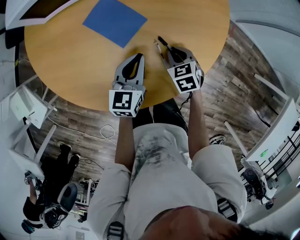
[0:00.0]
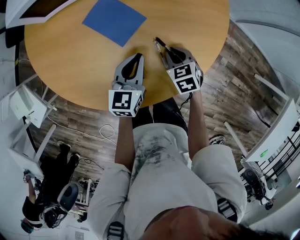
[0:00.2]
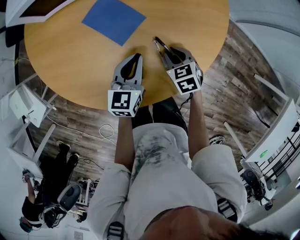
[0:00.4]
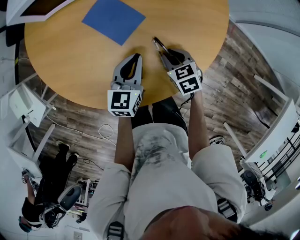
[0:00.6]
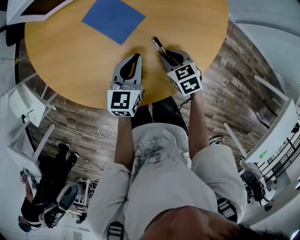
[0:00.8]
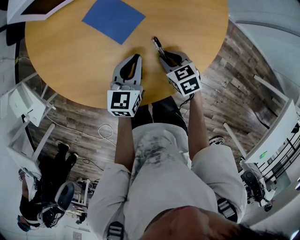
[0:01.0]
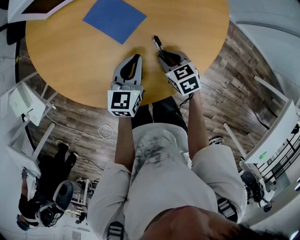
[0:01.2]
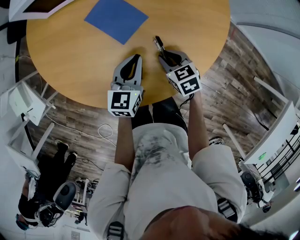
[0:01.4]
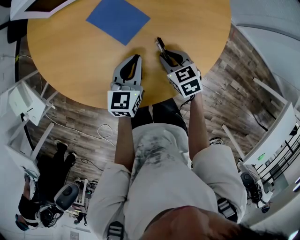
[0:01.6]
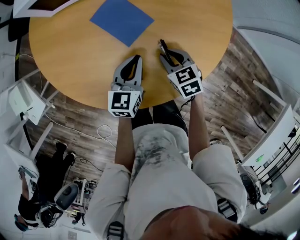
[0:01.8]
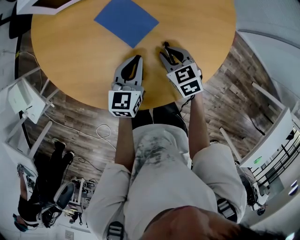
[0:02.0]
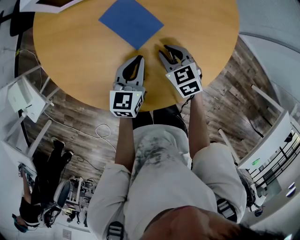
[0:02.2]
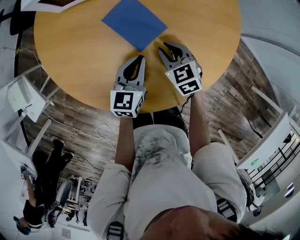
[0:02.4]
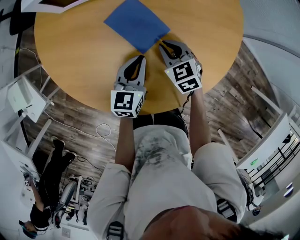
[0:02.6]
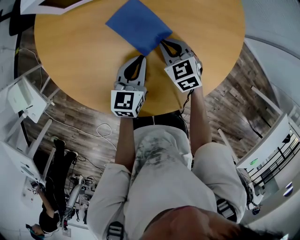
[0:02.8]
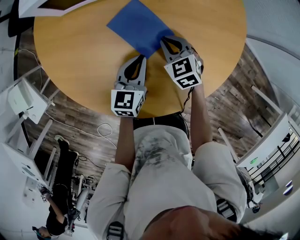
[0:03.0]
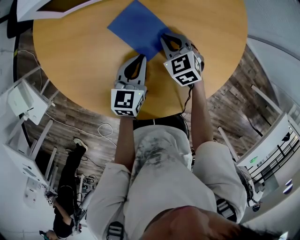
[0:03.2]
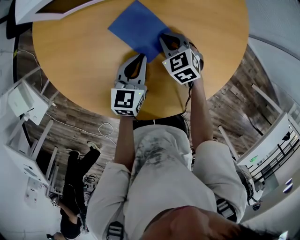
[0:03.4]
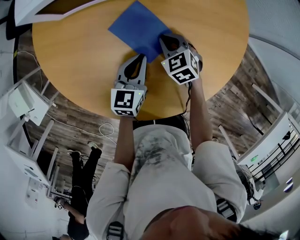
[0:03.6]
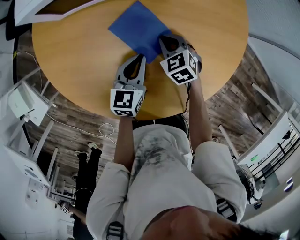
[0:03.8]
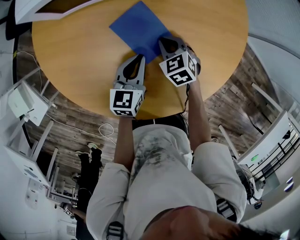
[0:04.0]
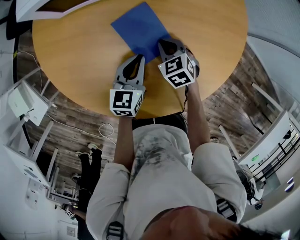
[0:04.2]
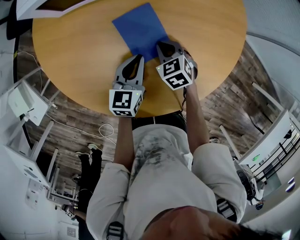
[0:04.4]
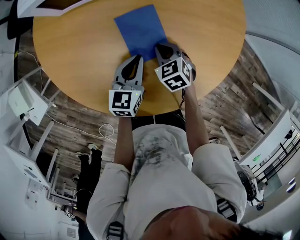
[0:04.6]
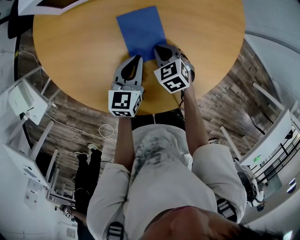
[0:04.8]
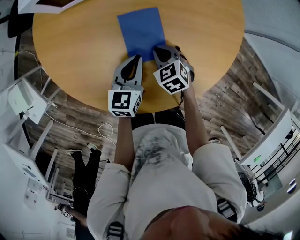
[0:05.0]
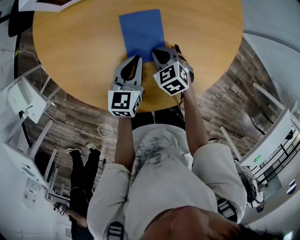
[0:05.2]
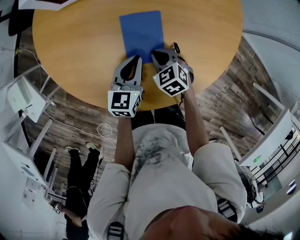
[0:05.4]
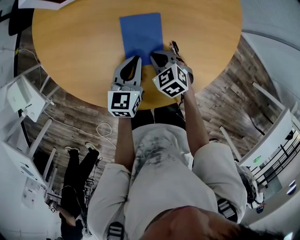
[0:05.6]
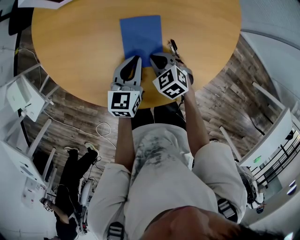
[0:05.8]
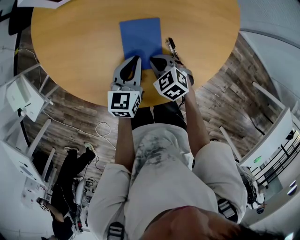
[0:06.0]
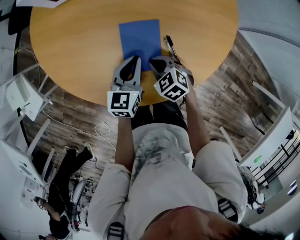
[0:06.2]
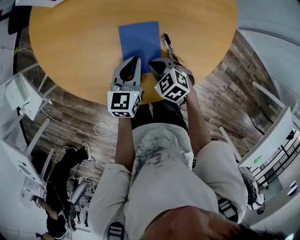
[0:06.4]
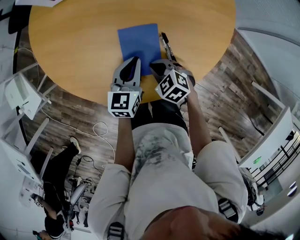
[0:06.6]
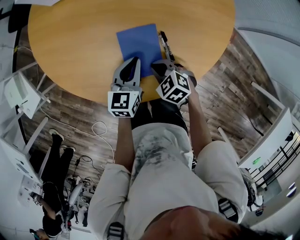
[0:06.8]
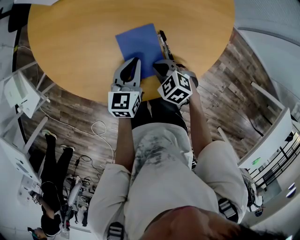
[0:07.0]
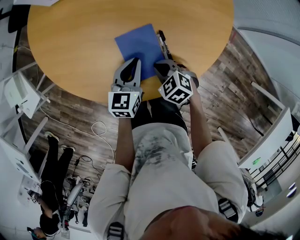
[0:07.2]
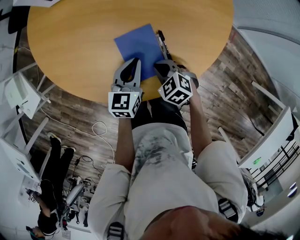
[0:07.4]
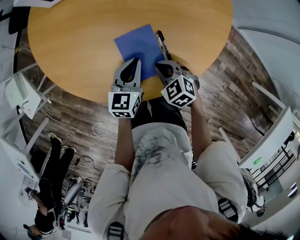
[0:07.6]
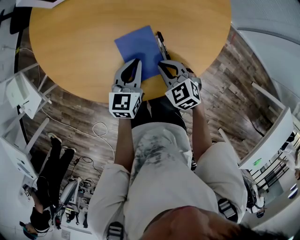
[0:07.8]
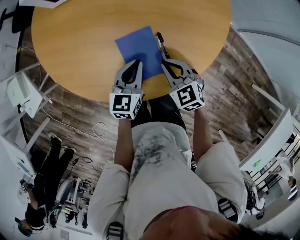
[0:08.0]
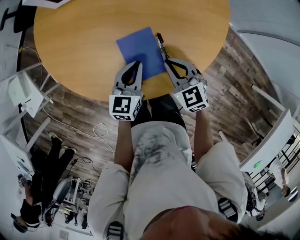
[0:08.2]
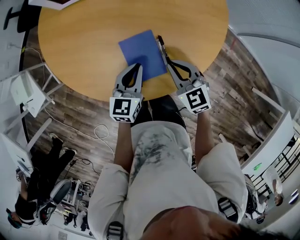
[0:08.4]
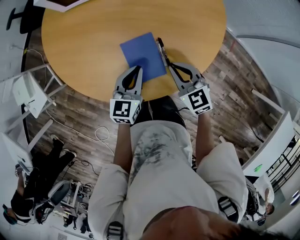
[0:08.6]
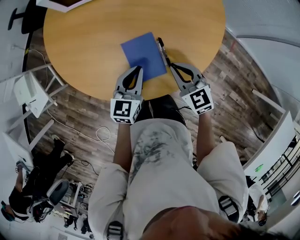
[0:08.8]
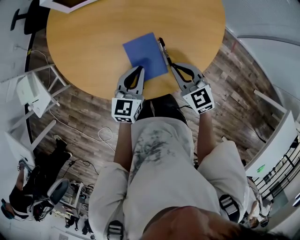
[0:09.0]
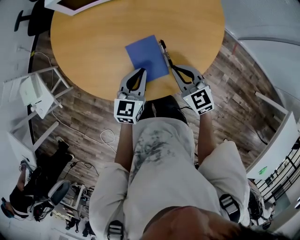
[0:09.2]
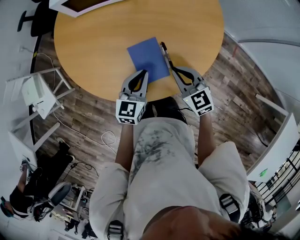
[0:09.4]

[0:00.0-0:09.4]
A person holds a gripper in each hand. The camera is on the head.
0:00.0 to 0:01.6: The grippers make only small movements.
0:01.6 to 0:03.2: The left gripper goes approximately 10 cm forward and to the left. Meanwhile the right gripper shifts approximately 15 cm forward and to the left.
0:03.2 to 0:04.8: The right gripper shifts about 5 cm backward.
0:04.8 to 0:06.2: The left gripper travels backward by some 5 cm. Meanwhile the right gripper heads backward, covering about 10 cm.
0:06.2 to 0:07.8: The left gripper ends up roughly 5 cm from where it was. Meanwhile the right gripper heads to the right, covering about 5 cm.
0:07.8 to 0:09.4: Both grippers move upward, about 10 cm. The right gripper swivels approximately 20 degrees.

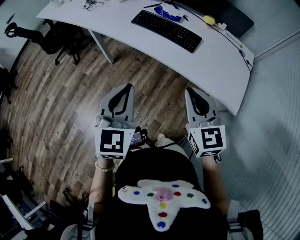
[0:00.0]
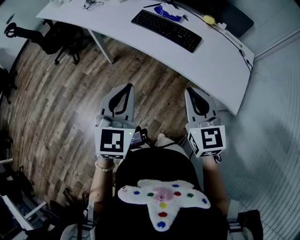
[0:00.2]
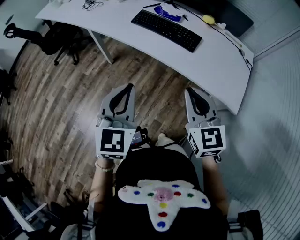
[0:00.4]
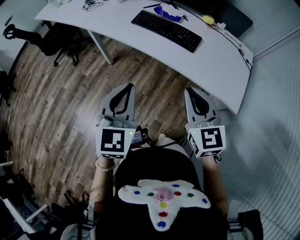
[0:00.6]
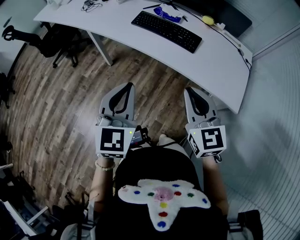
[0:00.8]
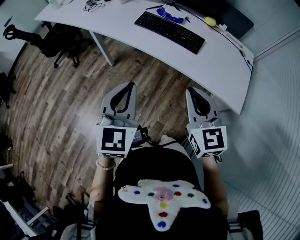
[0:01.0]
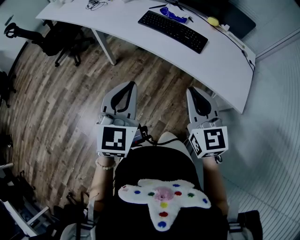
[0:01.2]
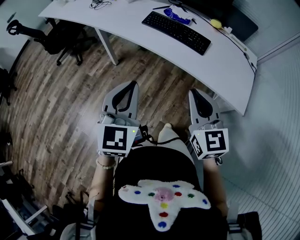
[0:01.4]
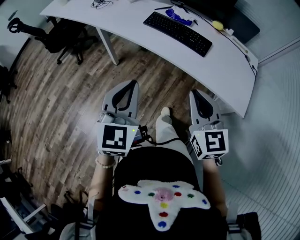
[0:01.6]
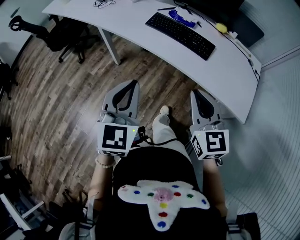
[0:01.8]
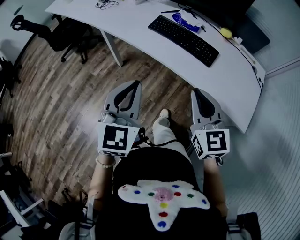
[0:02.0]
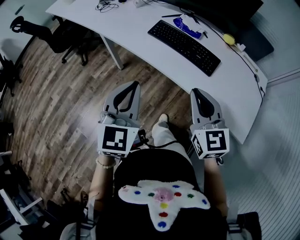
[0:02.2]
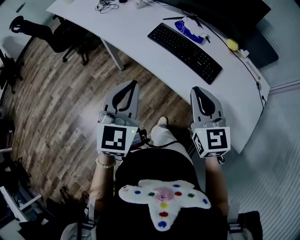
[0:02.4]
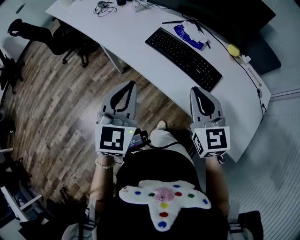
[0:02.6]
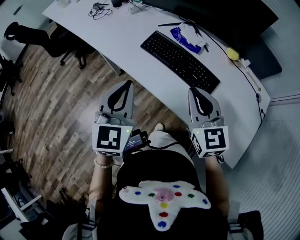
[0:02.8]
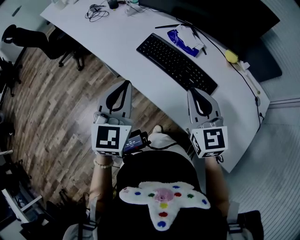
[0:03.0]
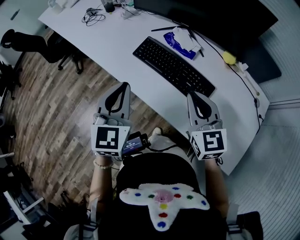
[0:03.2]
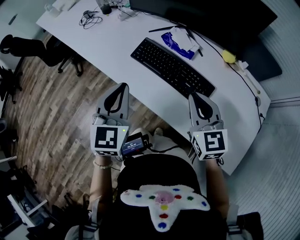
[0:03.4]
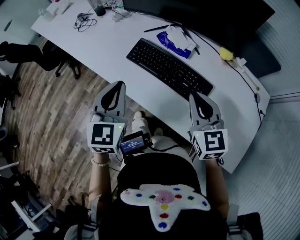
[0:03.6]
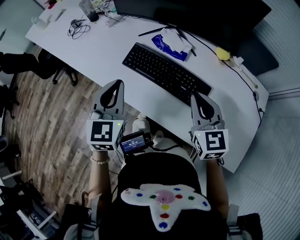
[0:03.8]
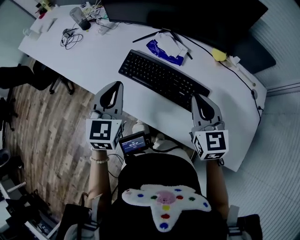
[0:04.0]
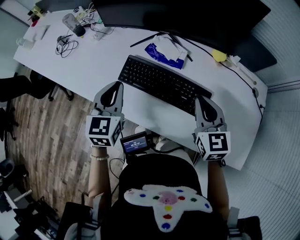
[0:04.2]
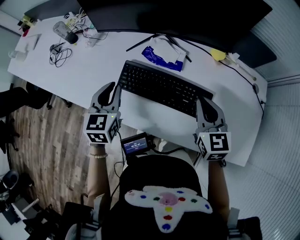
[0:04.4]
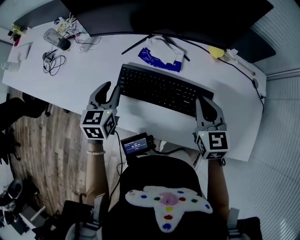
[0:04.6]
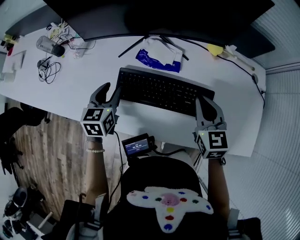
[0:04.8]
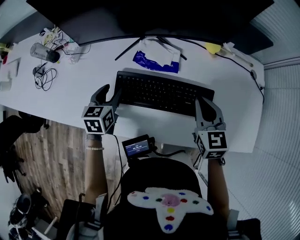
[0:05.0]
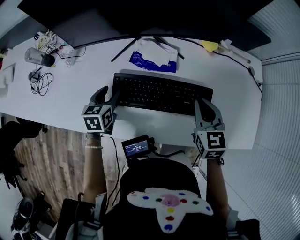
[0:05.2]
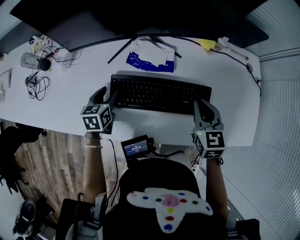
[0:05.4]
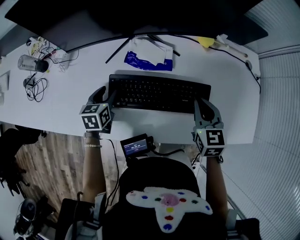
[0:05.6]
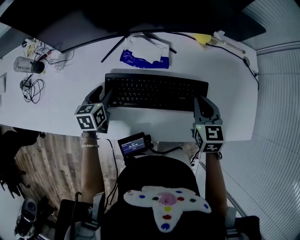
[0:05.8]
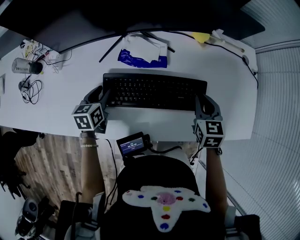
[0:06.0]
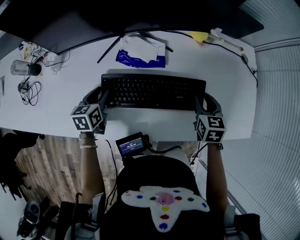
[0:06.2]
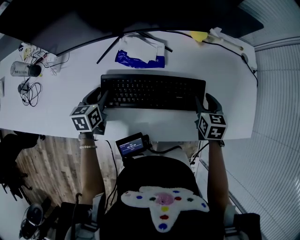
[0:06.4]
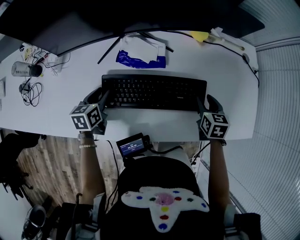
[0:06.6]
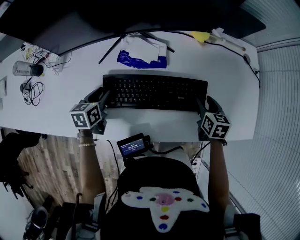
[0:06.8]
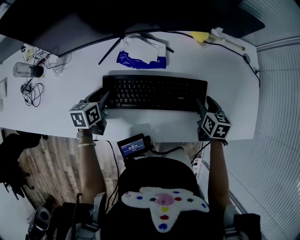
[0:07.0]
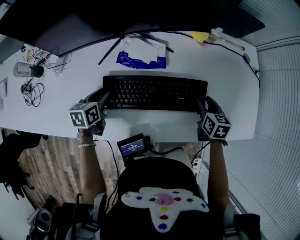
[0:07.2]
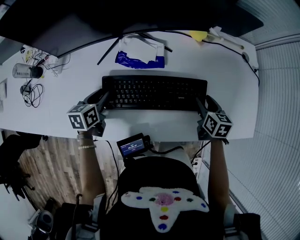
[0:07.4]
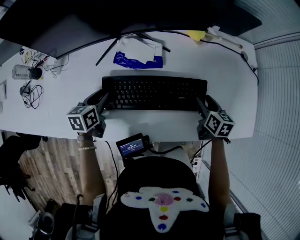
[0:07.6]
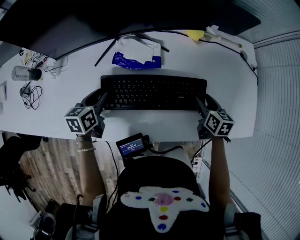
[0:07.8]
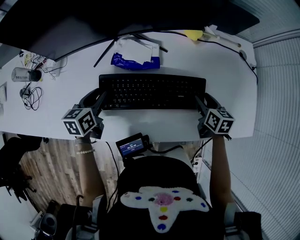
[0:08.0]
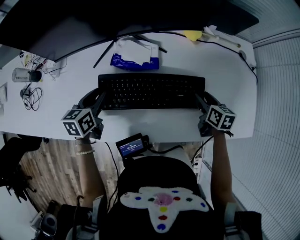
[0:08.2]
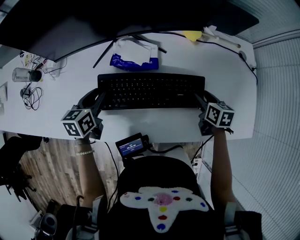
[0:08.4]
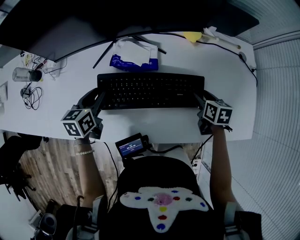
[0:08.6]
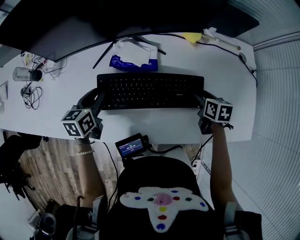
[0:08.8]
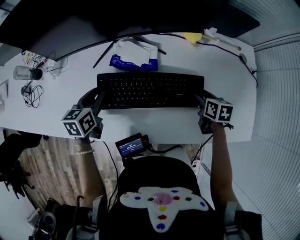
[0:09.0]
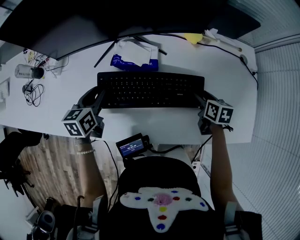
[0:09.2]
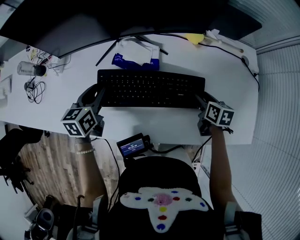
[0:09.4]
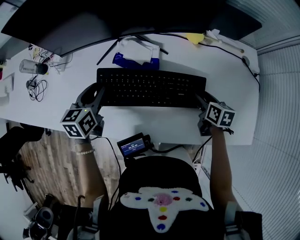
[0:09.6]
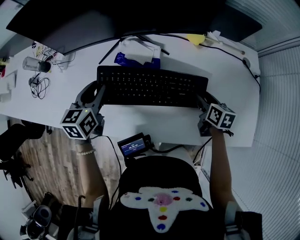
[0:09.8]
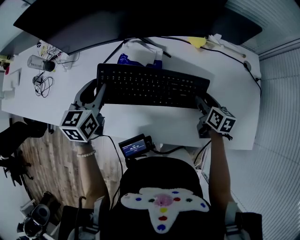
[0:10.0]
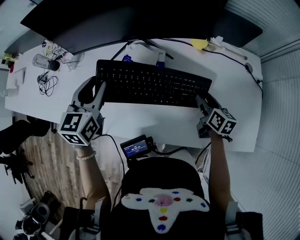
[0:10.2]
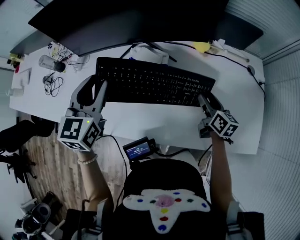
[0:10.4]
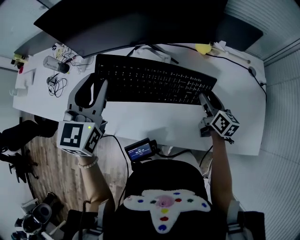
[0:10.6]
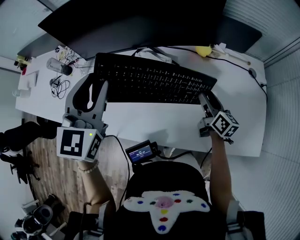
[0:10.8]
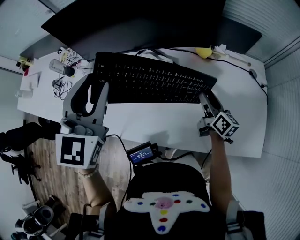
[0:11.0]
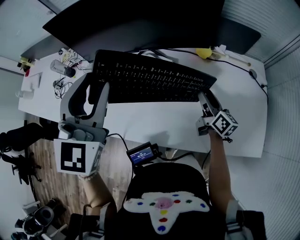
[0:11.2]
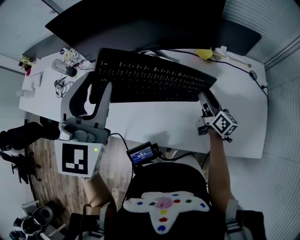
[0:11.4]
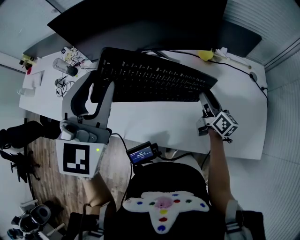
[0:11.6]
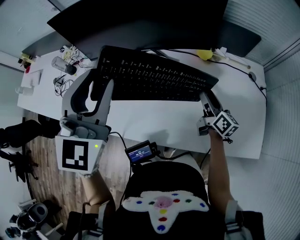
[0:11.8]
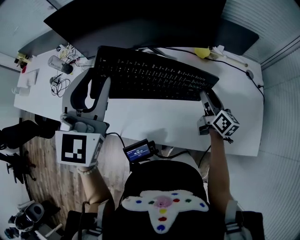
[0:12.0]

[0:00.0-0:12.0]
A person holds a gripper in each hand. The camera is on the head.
0:00.0 to 0:01.6: Both grippers travel together to the left, roughly 5 cm.
0:01.6 to 0:03.0: The grippers both shift forward by some 25 cm.
0:03.0 to 0:04.4: The right gripper moves forward, to the right and downward, roughly 15 cm, and swivels some 30 degrees; the left gripper heads forward and downward, covering roughly 25 cm, and swivels about 20 degrees.
0:04.4 to 0:06.0: The left gripper goes approximately 15 cm downward, changes its angle by approximately 30 degrees, and opens; the right gripper moves downward, approximately 10 cm, and rotates about 30 degrees.
0:06.0 to 0:07.6: The right gripper moves downward and to the right, roughly 10 cm, changes its angle by roughly 30 degrees, and opens its fingers.
0:07.6 to 0:09.0: The left gripper shifts by approximately 5 cm.
0:09.0 to 0:10.4: The left gripper is displaced upward by about 20 cm, and rotates about 30 degrees. The right gripper heads upward, covering about 5 cm, and swivels about 30 degrees.
0:10.4 to 0:12.0: The left gripper travels upward and backward by roughly 10 cm, and rotates approximately 20 degrees.

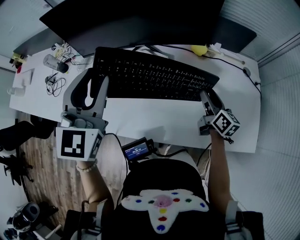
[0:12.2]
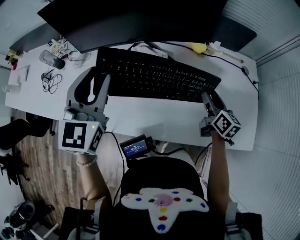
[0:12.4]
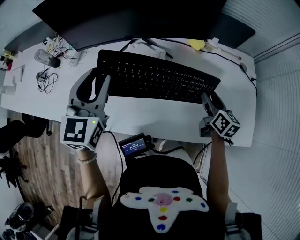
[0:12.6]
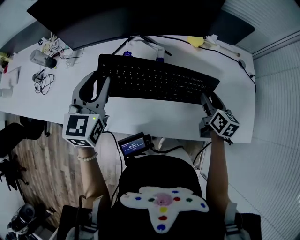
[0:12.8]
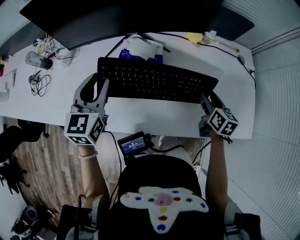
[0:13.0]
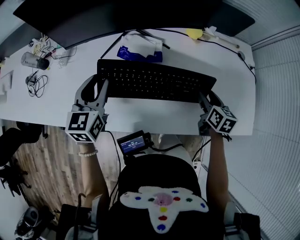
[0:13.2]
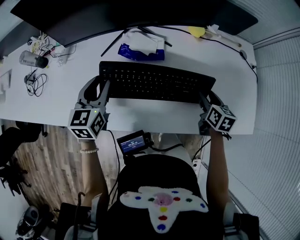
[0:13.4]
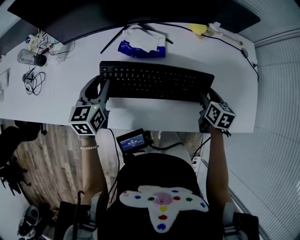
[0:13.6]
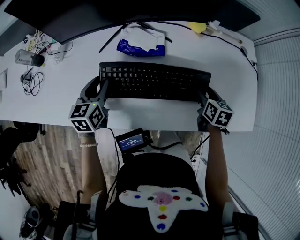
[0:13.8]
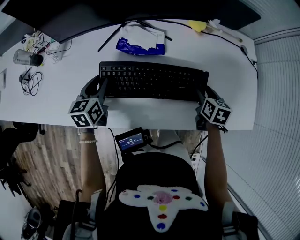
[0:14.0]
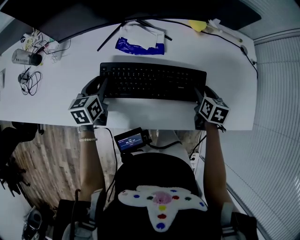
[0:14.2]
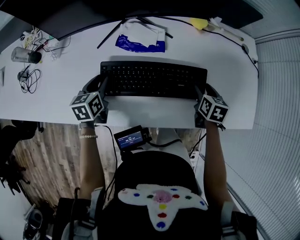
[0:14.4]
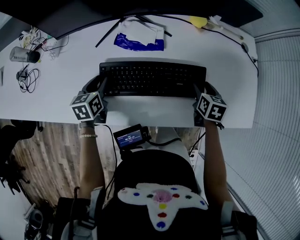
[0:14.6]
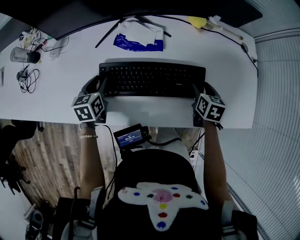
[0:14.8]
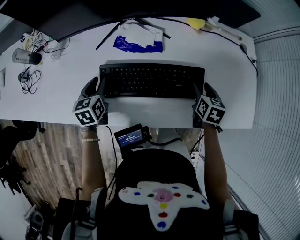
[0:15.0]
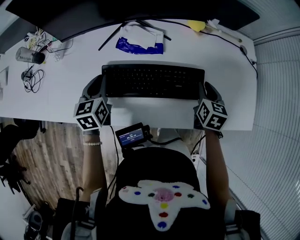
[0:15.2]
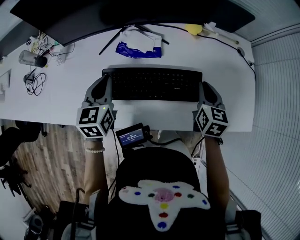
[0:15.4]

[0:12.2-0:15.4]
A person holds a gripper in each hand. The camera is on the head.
0:12.2 to 0:13.8: The left gripper moves downward, approximately 30 cm, and rotates roughly 40 degrees. Meanwhile the right gripper heads downward and backward, covering some 10 cm, and points its fingers approximately 30 degrees further downward.
0:13.8 to 0:15.4: The right gripper travels upward by some 10 cm, and closes, while the left gripper travels upward by approximately 5 cm, and closes its fingers.
